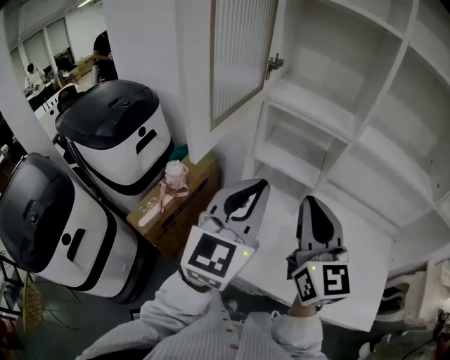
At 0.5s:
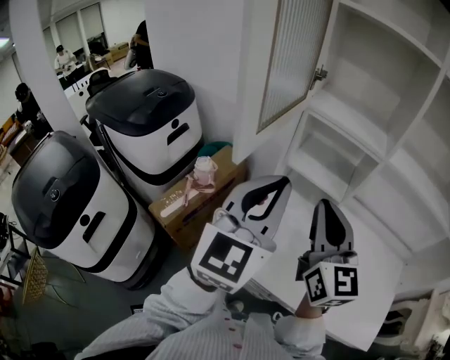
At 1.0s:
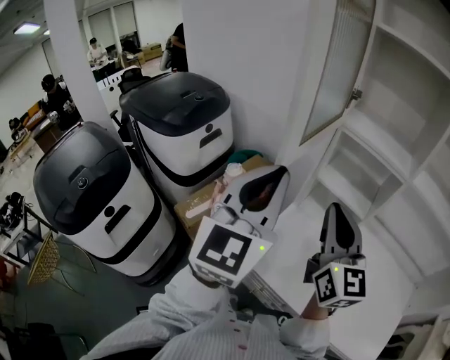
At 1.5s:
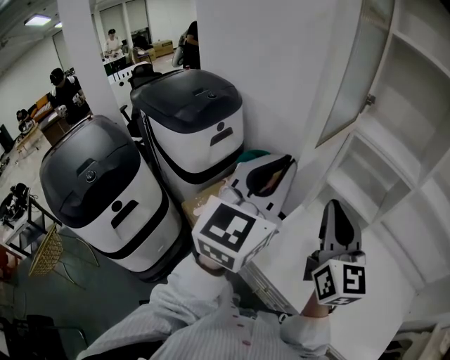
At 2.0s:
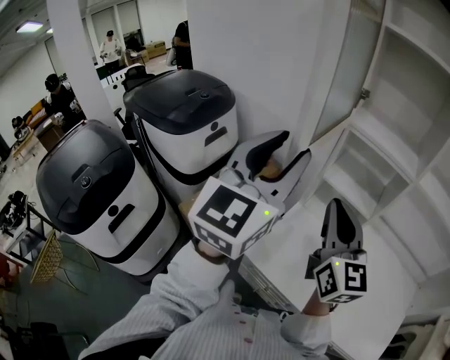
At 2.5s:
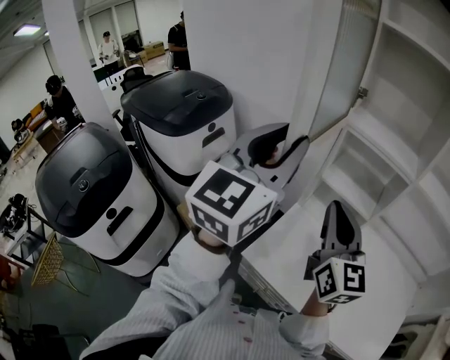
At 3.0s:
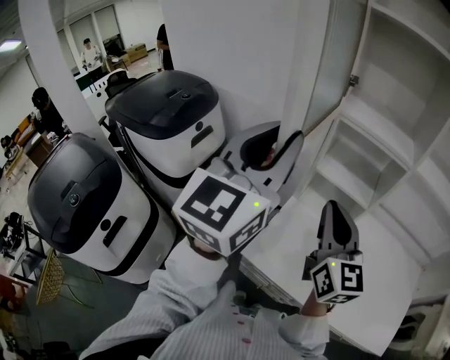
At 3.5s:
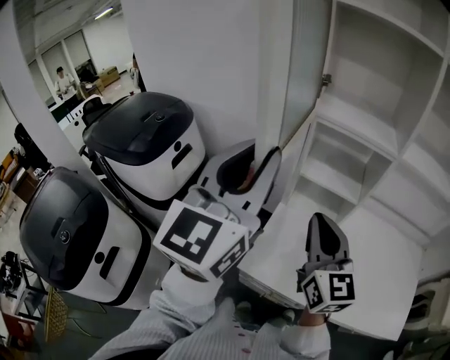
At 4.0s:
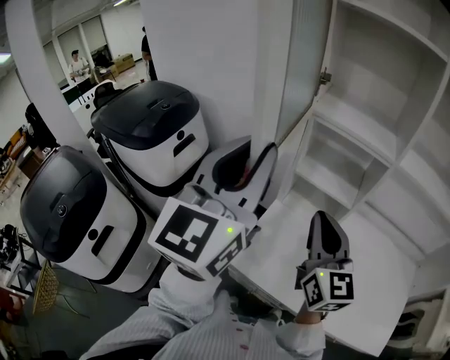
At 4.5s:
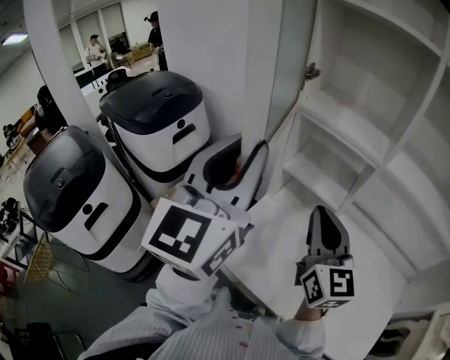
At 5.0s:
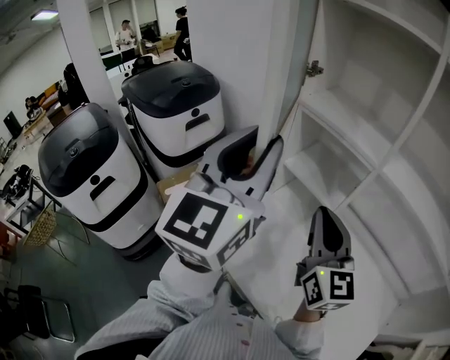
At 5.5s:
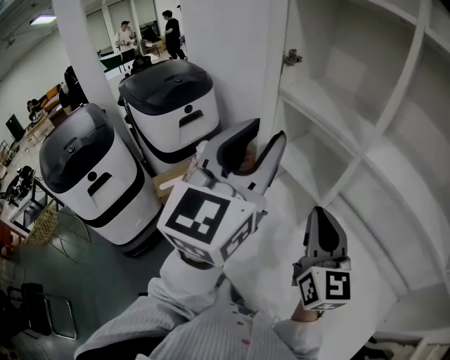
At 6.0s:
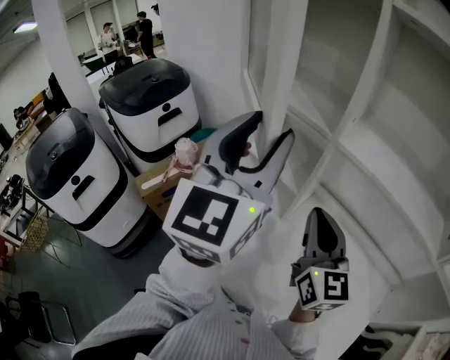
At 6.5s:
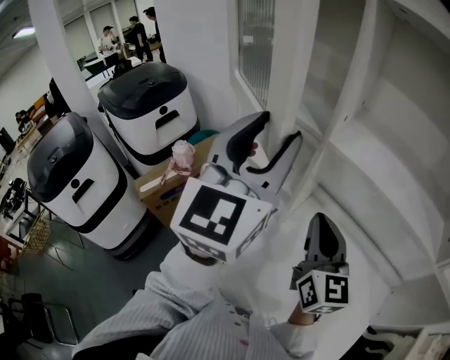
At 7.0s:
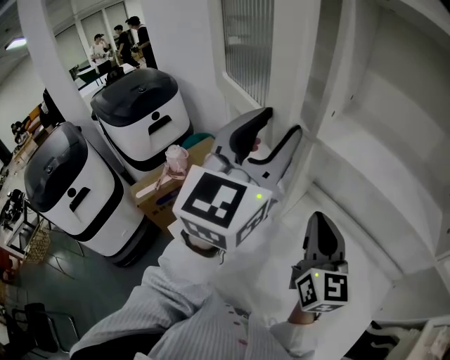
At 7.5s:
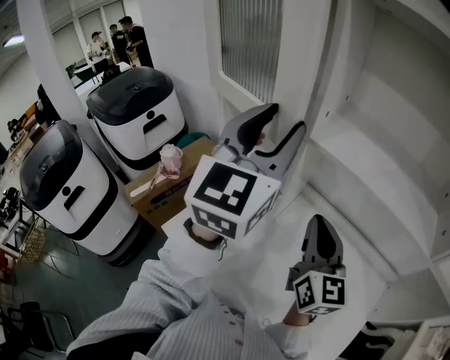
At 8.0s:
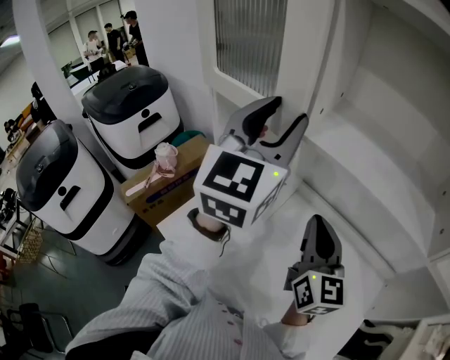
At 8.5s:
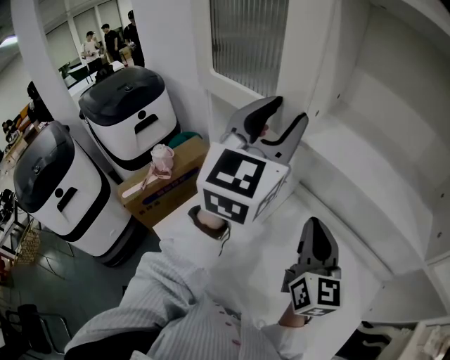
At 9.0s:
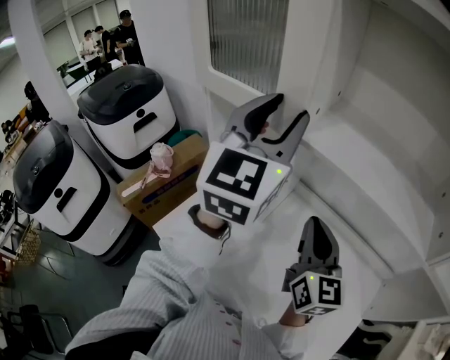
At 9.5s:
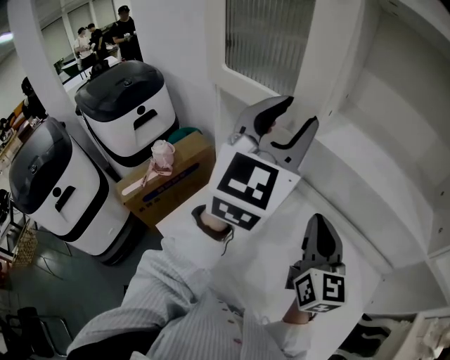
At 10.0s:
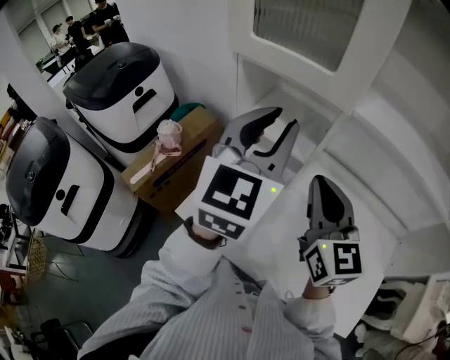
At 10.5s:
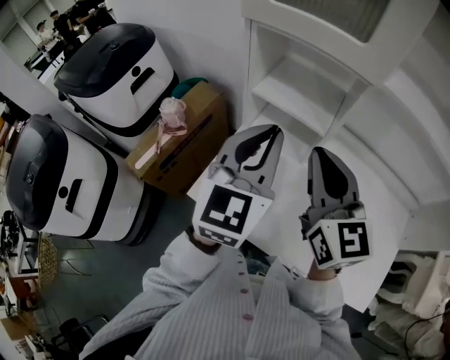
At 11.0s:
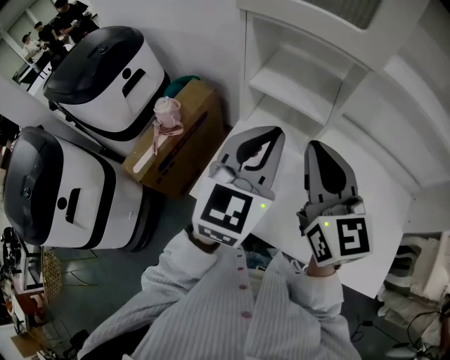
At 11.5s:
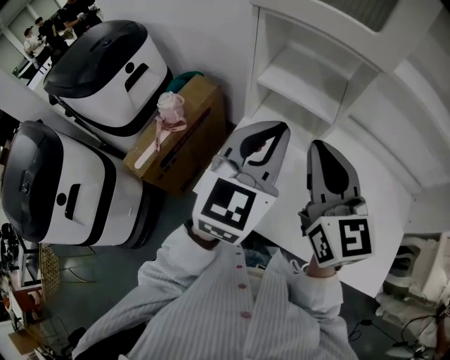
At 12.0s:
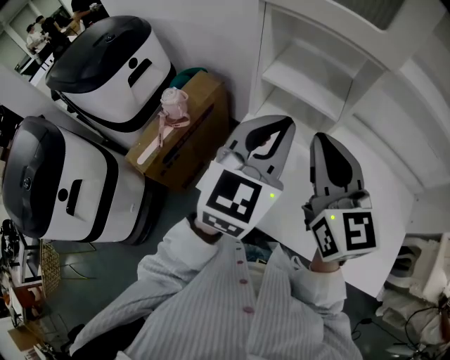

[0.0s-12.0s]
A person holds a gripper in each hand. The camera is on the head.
0.0s to 2.0s: The left gripper moves to the left and upward, some 15 cm, and opens its fingers; the right gripper goes some 10 cm to the left.
2.0s to 4.0s: The right gripper moves to the right, some 5 cm.
4.0s to 6.0s: Both grippers move to the right, about 25 cm. The left gripper opens up.
6.0s to 8.0s: The right gripper moves to the right, some 10 cm, while the left gripper is displaced to the right and forward by about 10 cm.
8.0s to 10.0s: The right gripper travels to the left by about 10 cm. Meanwhile the left gripper shifts roughly 10 cm to the left and downward.
10.0s to 12.0s: The right gripper heads to the left, covering about 10 cm; the left gripper is displaced downward and to the left by about 10 cm, and closes up.

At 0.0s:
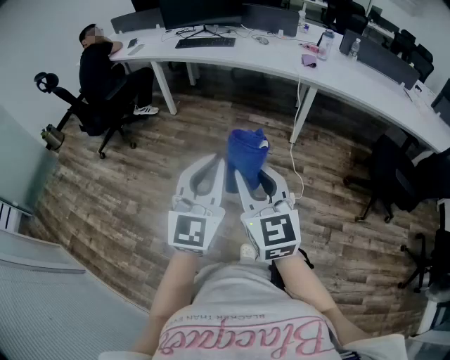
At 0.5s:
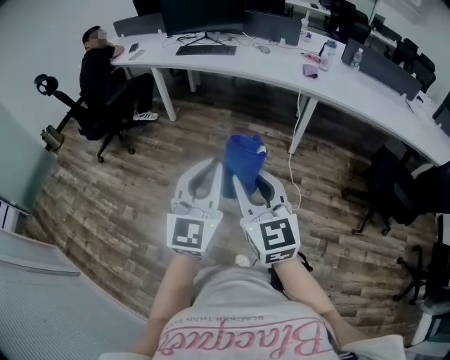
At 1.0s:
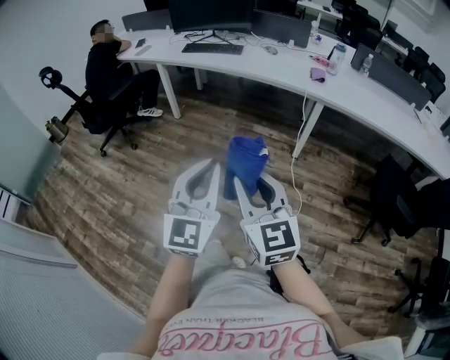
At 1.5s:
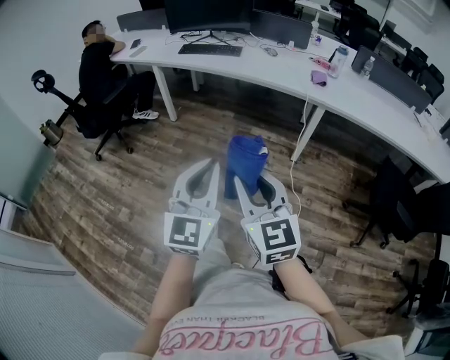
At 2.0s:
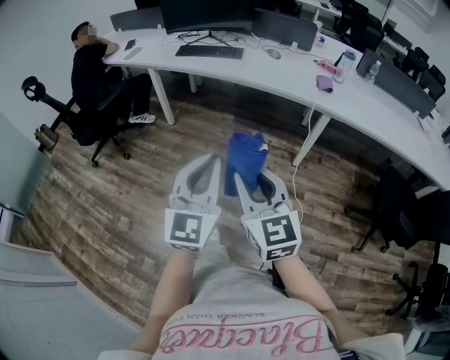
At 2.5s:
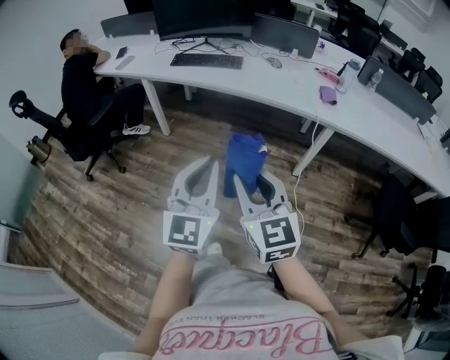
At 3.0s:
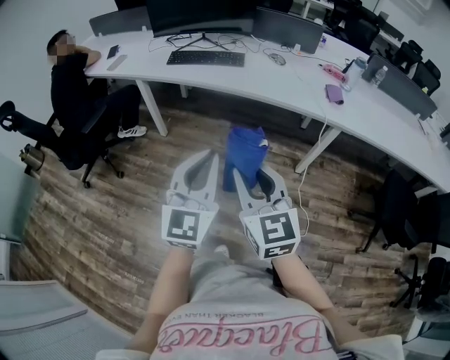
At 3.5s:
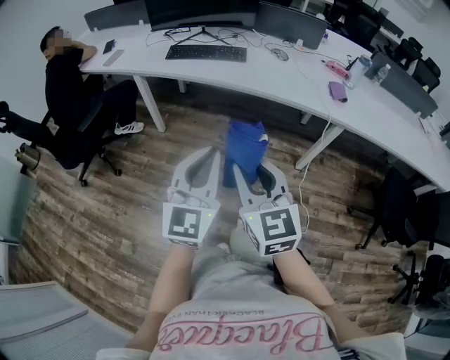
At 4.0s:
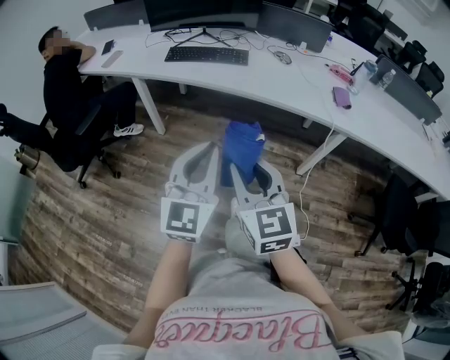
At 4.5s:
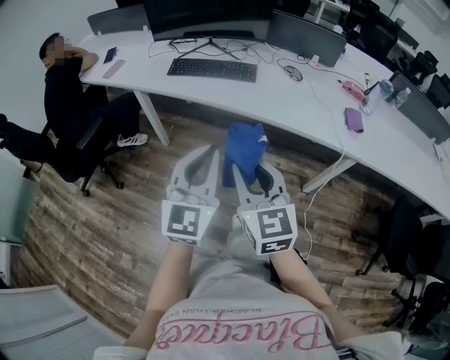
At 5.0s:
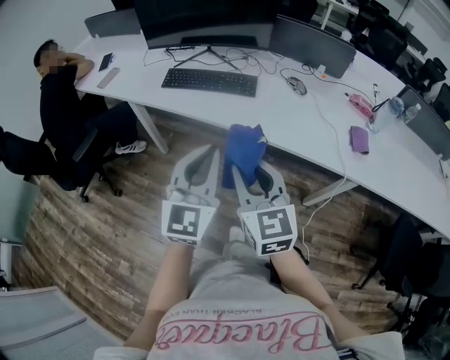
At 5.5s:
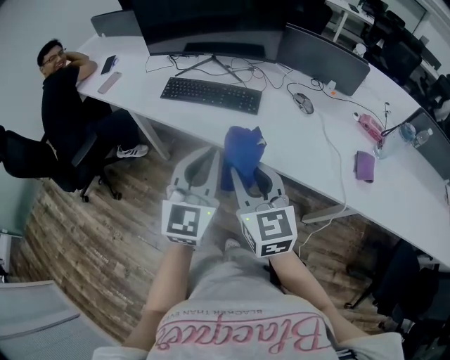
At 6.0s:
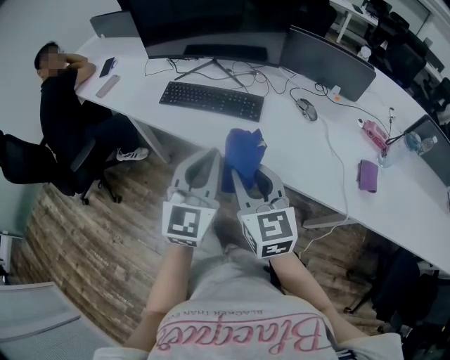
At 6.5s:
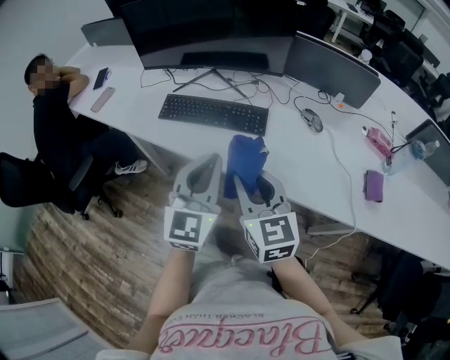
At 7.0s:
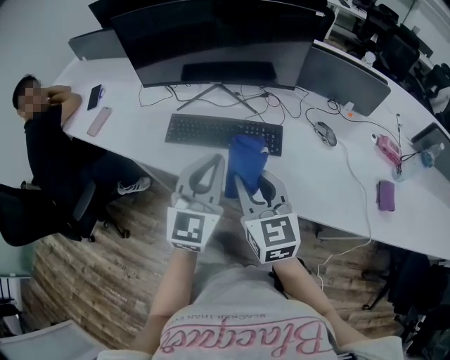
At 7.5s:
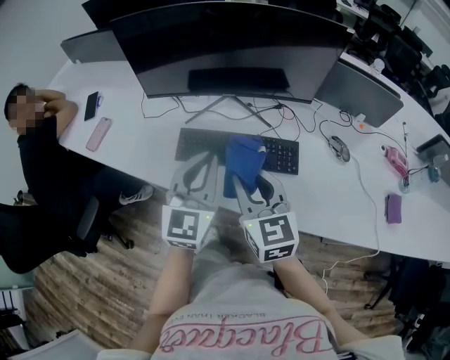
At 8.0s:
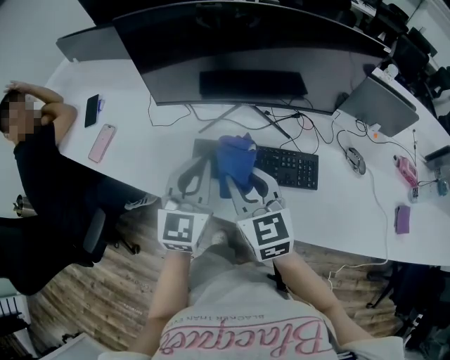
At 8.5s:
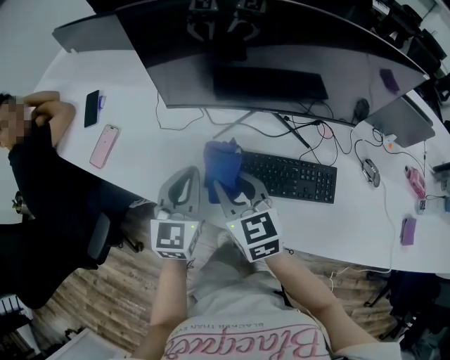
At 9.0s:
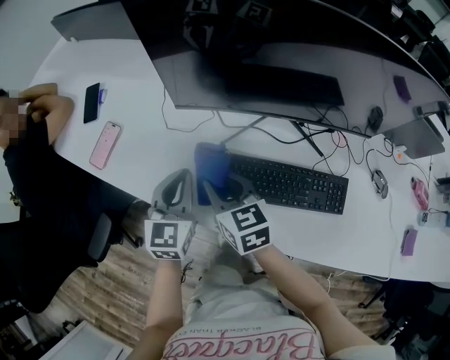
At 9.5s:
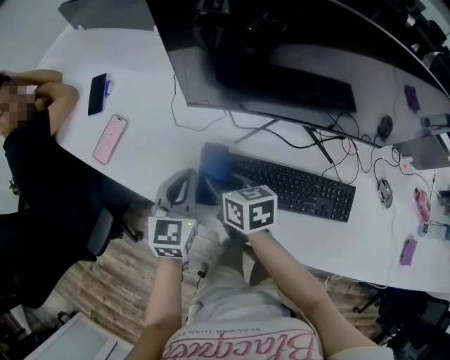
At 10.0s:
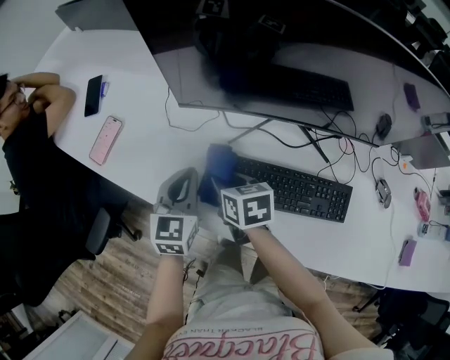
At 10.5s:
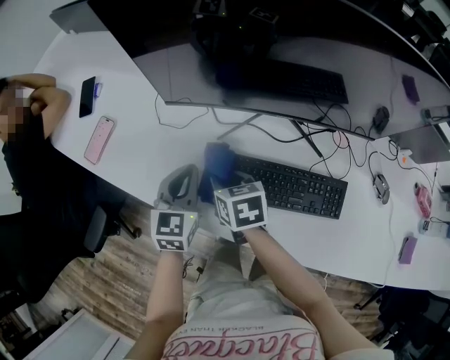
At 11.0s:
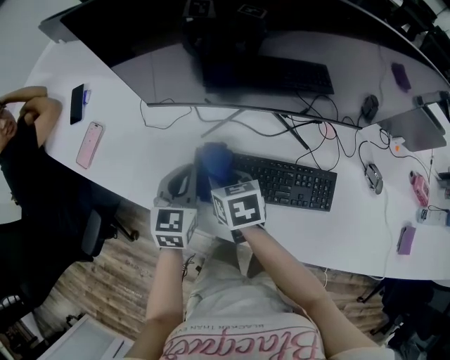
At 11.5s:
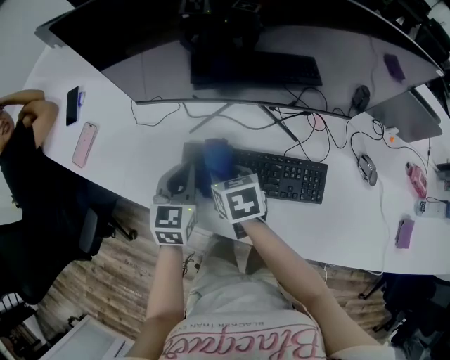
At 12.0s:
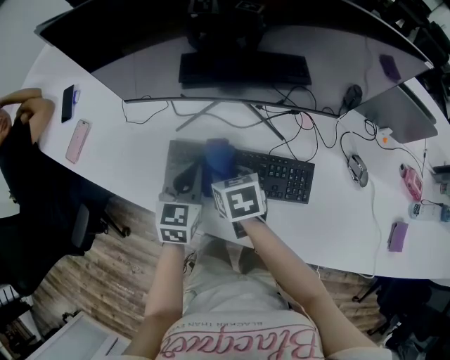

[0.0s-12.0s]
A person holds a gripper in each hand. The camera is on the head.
0.0s to 2.0s: Both grippers travel together forward, roughly 25 cm.
2.0s to 4.0s: The grippers both shift forward and to the left by about 30 cm.
4.0s to 6.0s: The two grippers go about 35 cm forward.
6.0s to 8.0s: Both grippers are carried forward and to the left, approximately 40 cm.
8.0s to 10.0s: The two grippers go about 25 cm downward, forward and to the left. The left gripper changes its angle by roughly 20 degrees. The right gripper rotates roughly 40 degrees.
10.0s to 12.0s: The left gripper goes roughly 15 cm to the right; the right gripper goes approximately 15 cm to the right and backward.

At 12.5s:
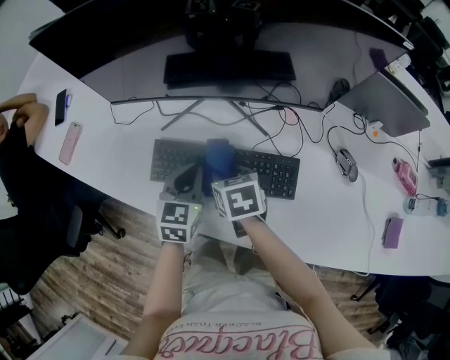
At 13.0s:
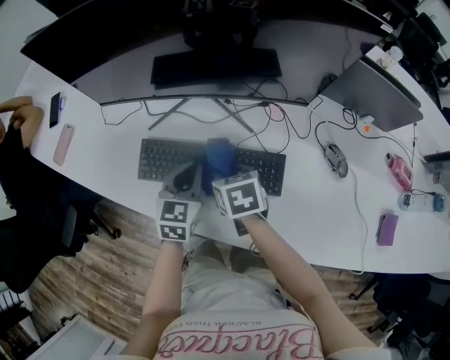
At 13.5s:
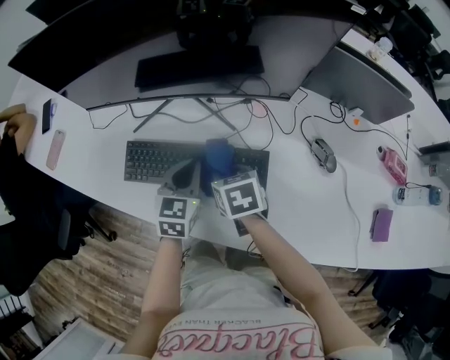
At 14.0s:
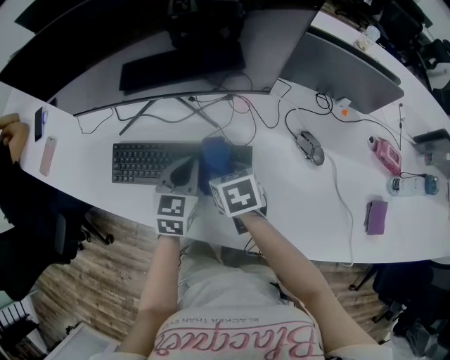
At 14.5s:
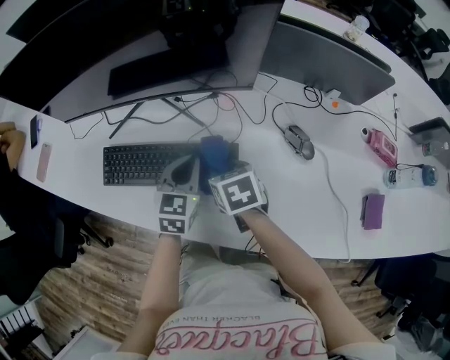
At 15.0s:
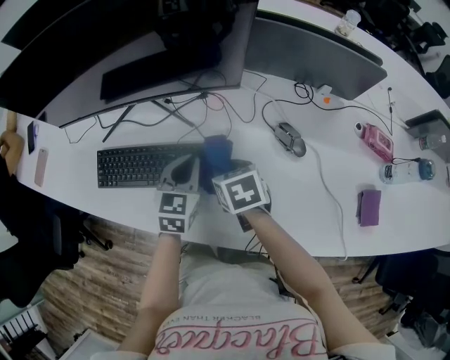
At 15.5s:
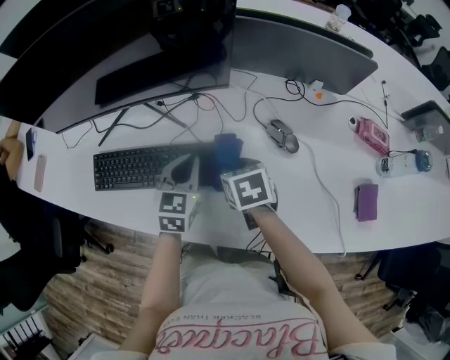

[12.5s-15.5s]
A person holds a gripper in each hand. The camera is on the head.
12.5s to 14.0s: Both grippers move to the right, roughly 15 cm.
14.0s to 15.5s: The grippers both shift to the right by roughly 10 cm.
